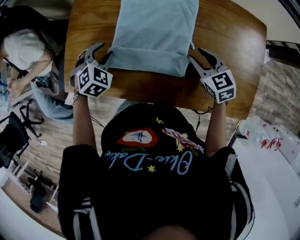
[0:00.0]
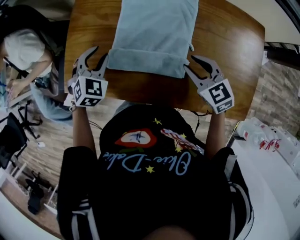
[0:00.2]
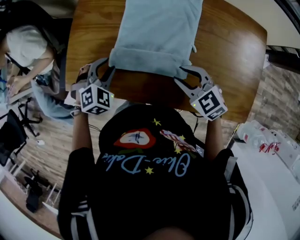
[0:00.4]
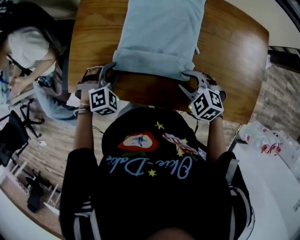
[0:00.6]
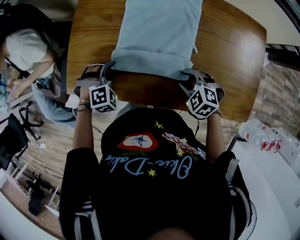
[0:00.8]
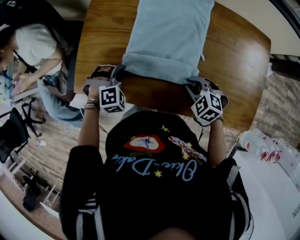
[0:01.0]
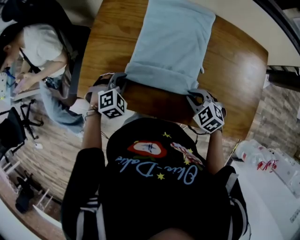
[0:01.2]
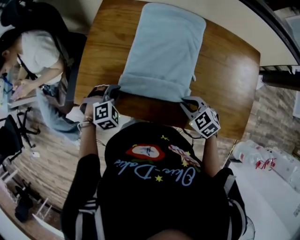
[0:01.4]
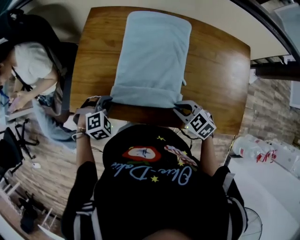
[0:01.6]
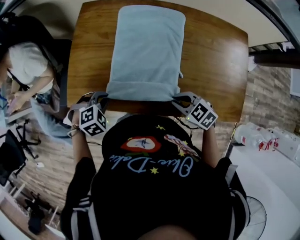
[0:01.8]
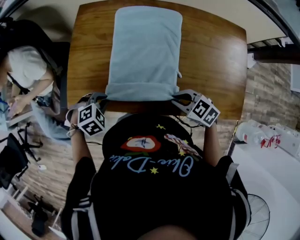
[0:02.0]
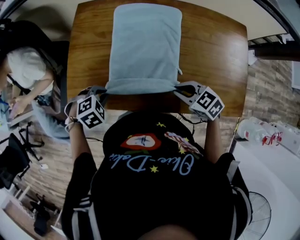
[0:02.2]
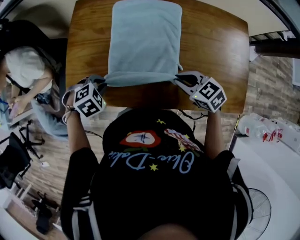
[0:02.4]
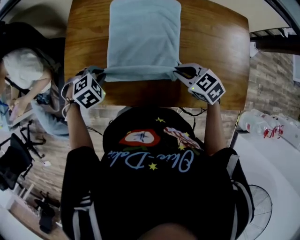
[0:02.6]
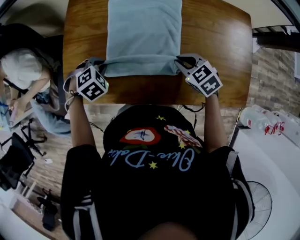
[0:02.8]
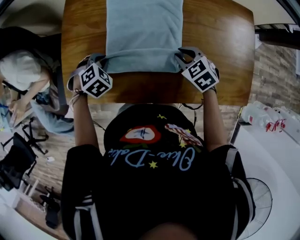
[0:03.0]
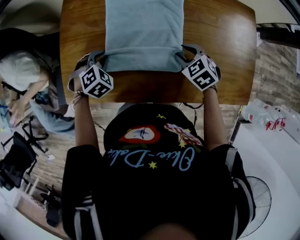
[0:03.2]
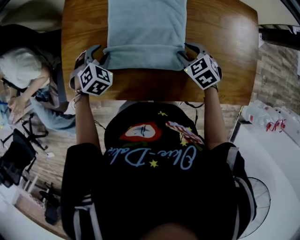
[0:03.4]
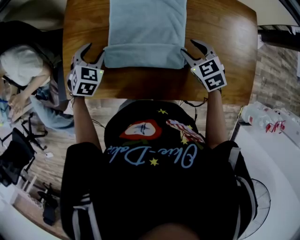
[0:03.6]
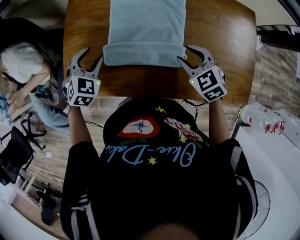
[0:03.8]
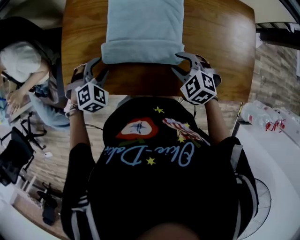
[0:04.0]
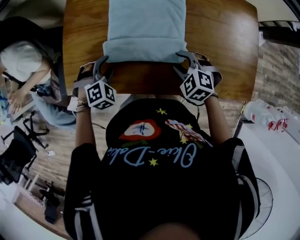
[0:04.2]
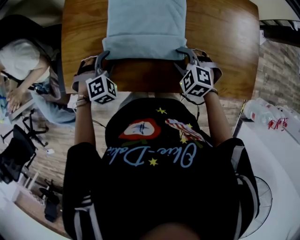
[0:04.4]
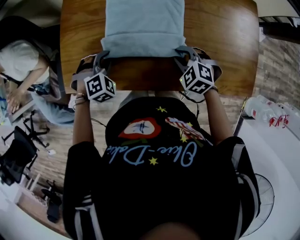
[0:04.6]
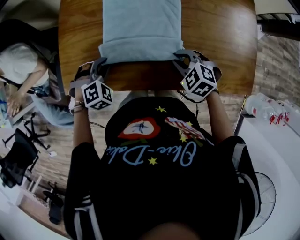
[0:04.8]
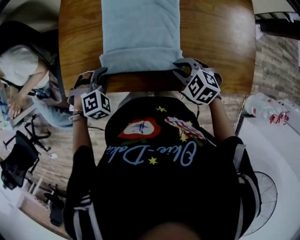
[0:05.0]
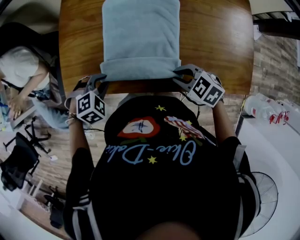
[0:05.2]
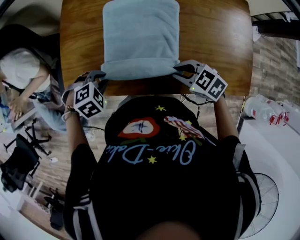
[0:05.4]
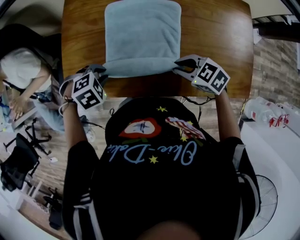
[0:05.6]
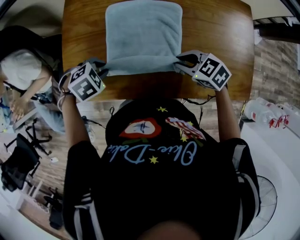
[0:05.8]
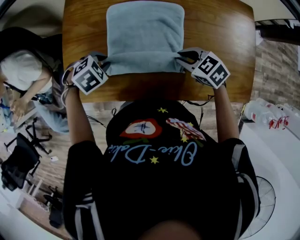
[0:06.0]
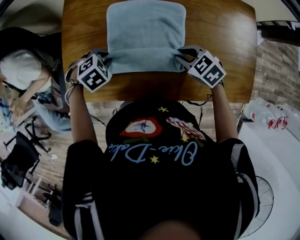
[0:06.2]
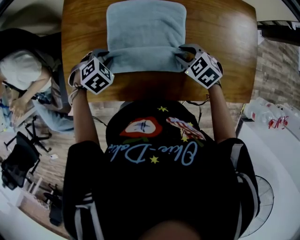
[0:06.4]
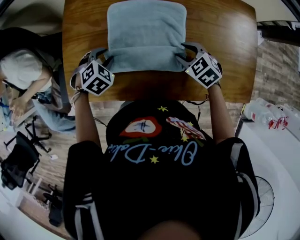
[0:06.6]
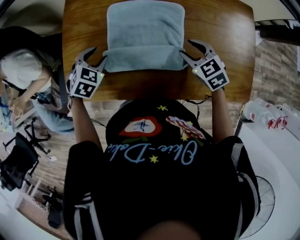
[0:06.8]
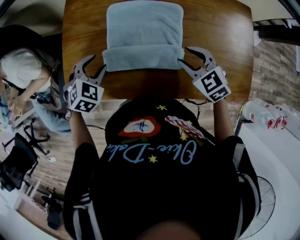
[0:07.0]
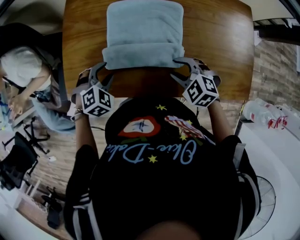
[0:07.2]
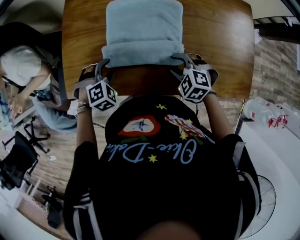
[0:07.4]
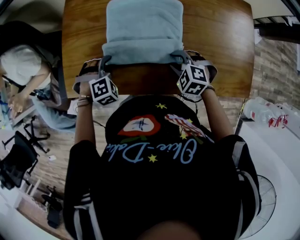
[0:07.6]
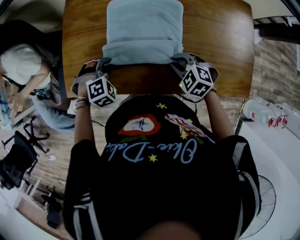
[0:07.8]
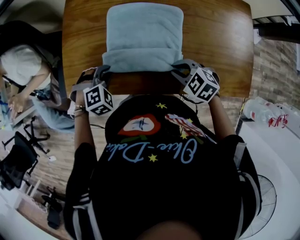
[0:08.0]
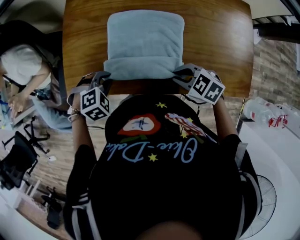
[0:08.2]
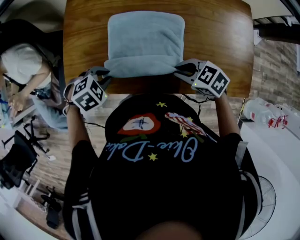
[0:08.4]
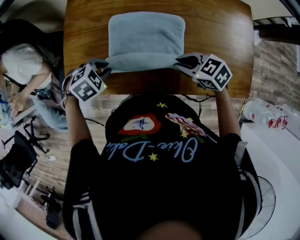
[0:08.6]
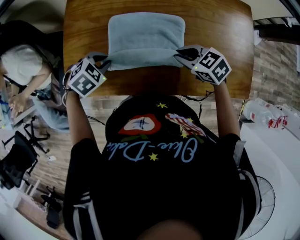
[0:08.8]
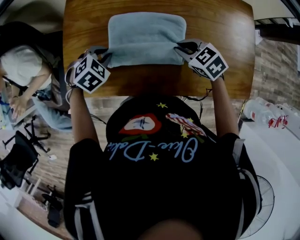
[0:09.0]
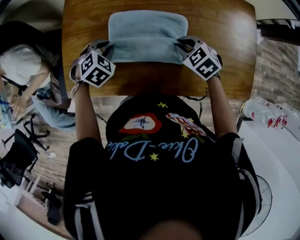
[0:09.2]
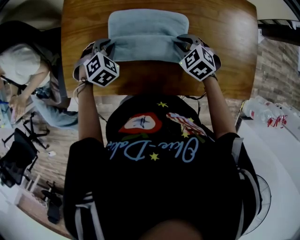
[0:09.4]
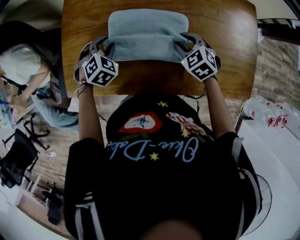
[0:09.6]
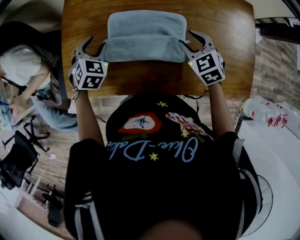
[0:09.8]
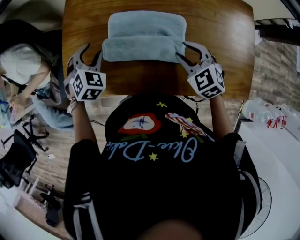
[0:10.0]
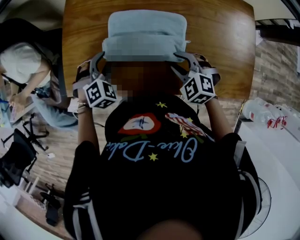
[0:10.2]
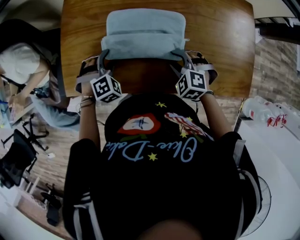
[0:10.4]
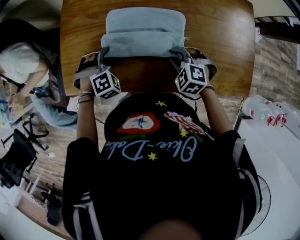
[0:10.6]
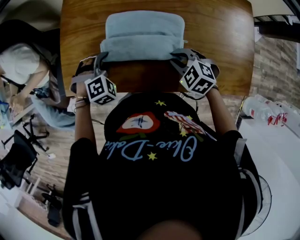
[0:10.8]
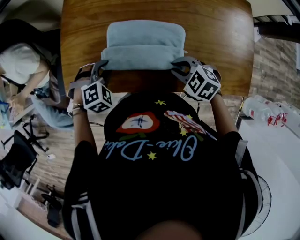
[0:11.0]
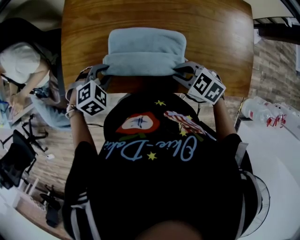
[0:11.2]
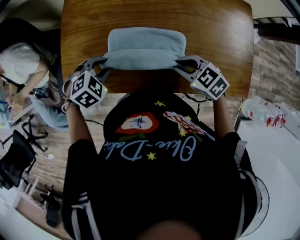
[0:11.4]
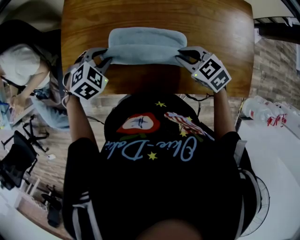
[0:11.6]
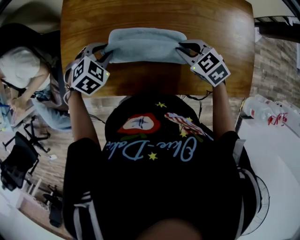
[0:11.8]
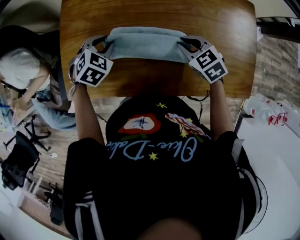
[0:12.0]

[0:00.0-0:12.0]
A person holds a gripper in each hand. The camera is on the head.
0:00.0 to 0:01.6: The two grippers go some 15 cm backward and to the left. The right gripper swivels about 20 degrees, and closes up. The left gripper swivels approximately 20 degrees, and closes.
0:01.6 to 0:03.0: The right gripper ends up about 10 cm from where it was; the left gripper moves some 10 cm.
0:03.0 to 0:04.4: Both grippers travel together backward, roughly 5 cm. The left gripper opens its fingers; the right gripper turns by some 30 degrees, and opens up.
0:04.4 to 0:06.0: The right gripper shifts by some 5 cm, rotates about 30 degrees, and closes, while the left gripper rotates approximately 30 degrees, and closes.
0:06.0 to 0:07.6: The right gripper moves about 5 cm, and rotates approximately 30 degrees, while the left gripper swivels about 30 degrees.
0:07.6 to 0:09.0: The right gripper moves some 10 cm, changes its angle by about 30 degrees, and closes up; the left gripper changes place by approximately 5 cm, and rotates roughly 30 degrees.
0:09.0 to 0:10.4: The left gripper swivels some 20 degrees, and opens up, while the right gripper is displaced backward by approximately 5 cm, swivels some 40 degrees, and opens up.
0:10.4 to 0:12.0: Both grippers travel together forward, some 5 cm. The right gripper turns by roughly 30 degrees, and closes its fingers. The left gripper turns by roughly 30 degrees, and closes.

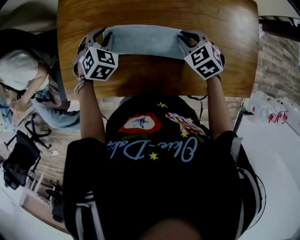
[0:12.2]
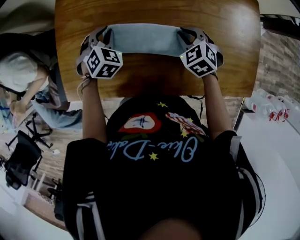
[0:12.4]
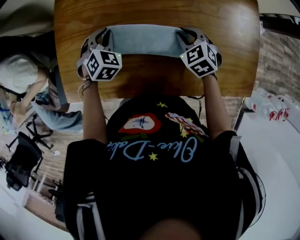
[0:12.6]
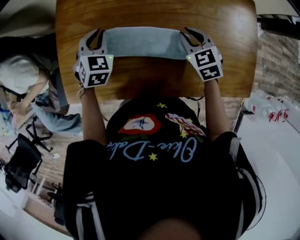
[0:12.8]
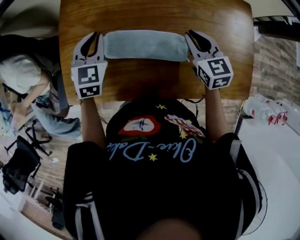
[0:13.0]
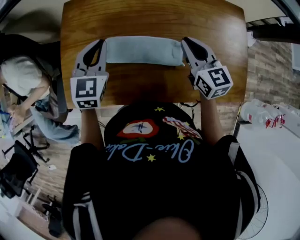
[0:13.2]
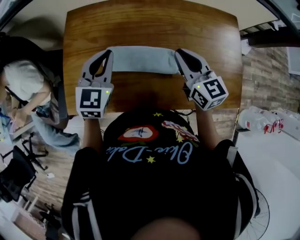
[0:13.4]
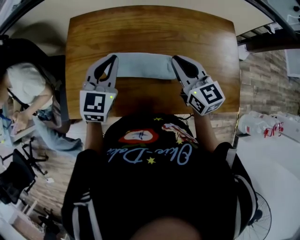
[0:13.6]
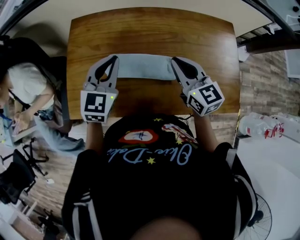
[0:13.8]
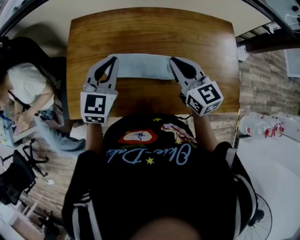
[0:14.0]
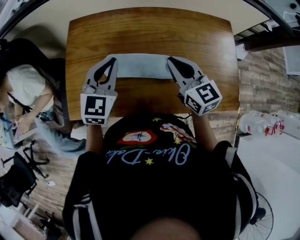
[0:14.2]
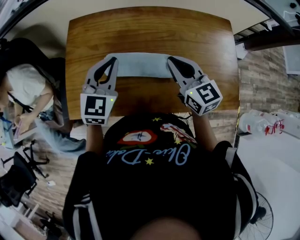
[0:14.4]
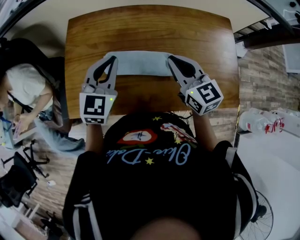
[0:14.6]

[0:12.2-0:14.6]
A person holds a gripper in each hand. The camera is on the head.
0:12.2 to 0:13.4: The grippers both shift upward by approximately 15 cm. The left gripper tilts its fingers about 30 degrees upward, and closes up. The right gripper angles its fingers upward, by approximately 40 degrees.
0:13.4 to 0:14.6: The grippers stay close to where they were, moving slightly.

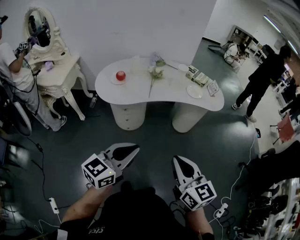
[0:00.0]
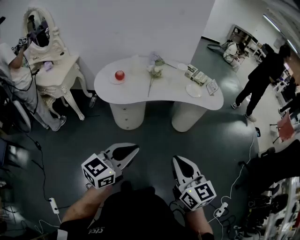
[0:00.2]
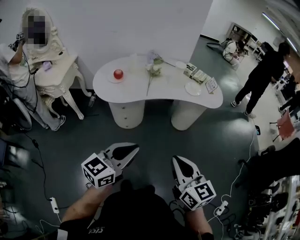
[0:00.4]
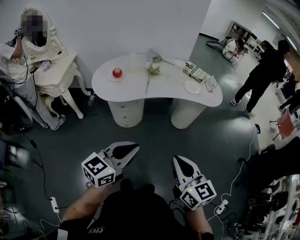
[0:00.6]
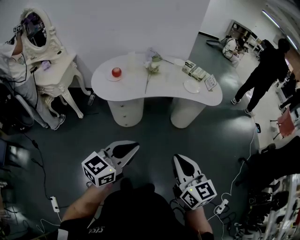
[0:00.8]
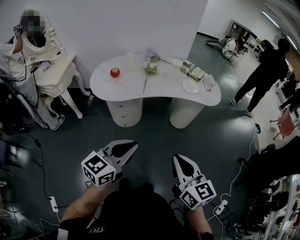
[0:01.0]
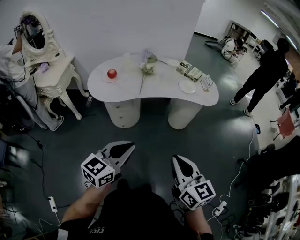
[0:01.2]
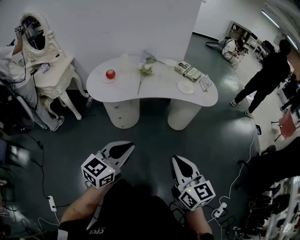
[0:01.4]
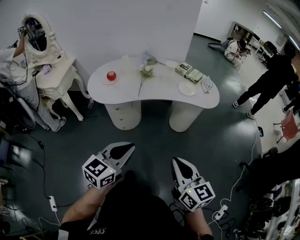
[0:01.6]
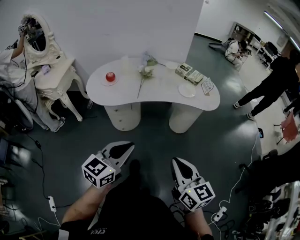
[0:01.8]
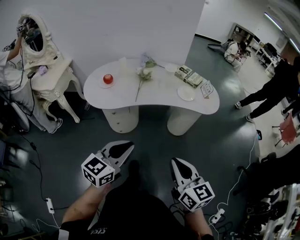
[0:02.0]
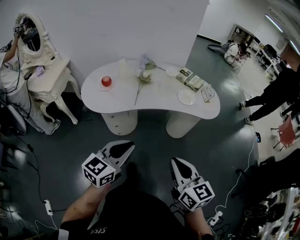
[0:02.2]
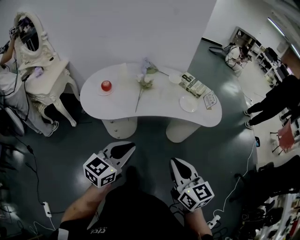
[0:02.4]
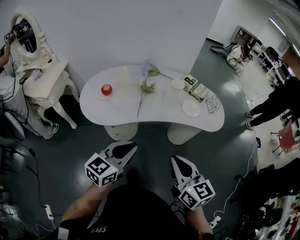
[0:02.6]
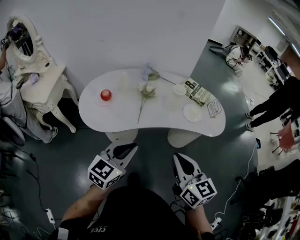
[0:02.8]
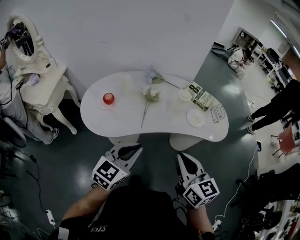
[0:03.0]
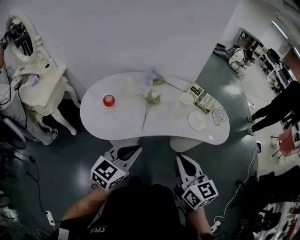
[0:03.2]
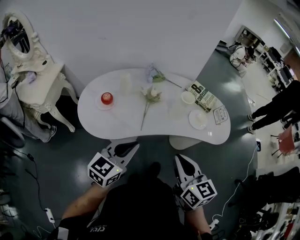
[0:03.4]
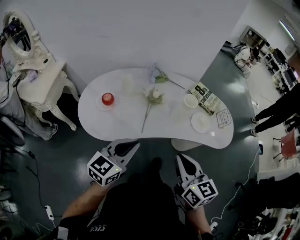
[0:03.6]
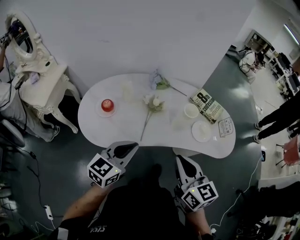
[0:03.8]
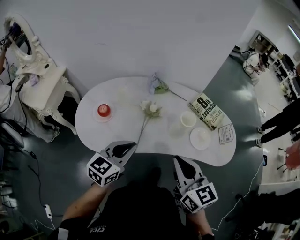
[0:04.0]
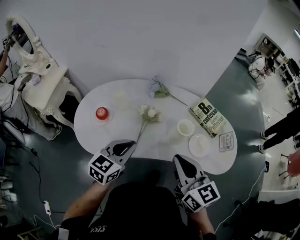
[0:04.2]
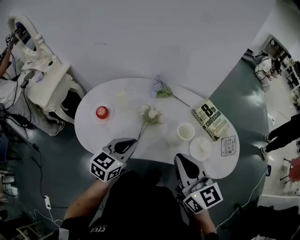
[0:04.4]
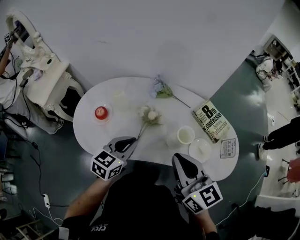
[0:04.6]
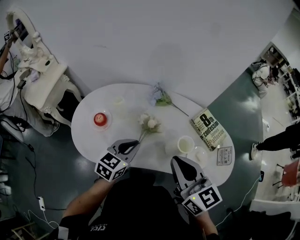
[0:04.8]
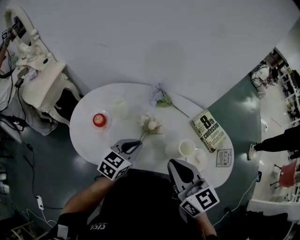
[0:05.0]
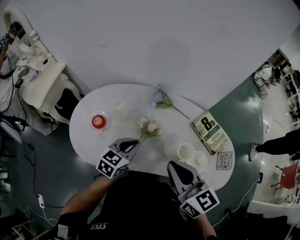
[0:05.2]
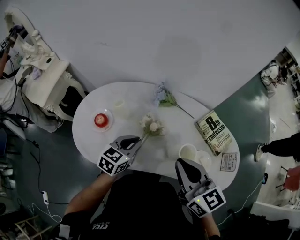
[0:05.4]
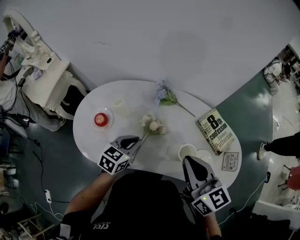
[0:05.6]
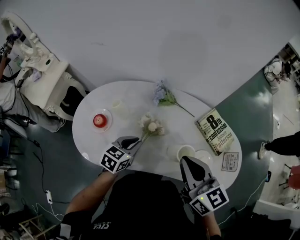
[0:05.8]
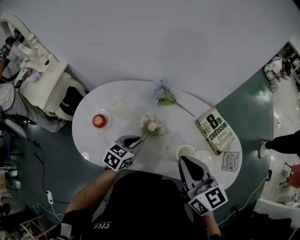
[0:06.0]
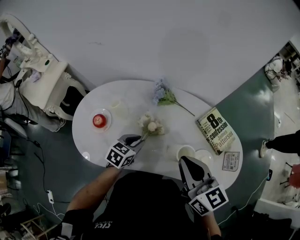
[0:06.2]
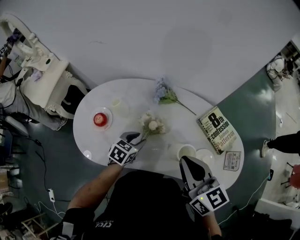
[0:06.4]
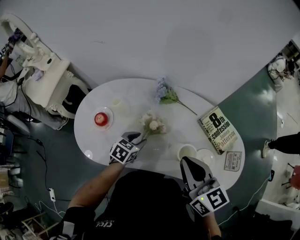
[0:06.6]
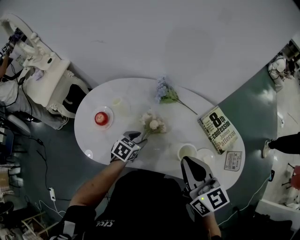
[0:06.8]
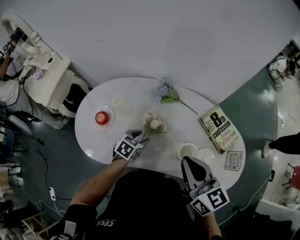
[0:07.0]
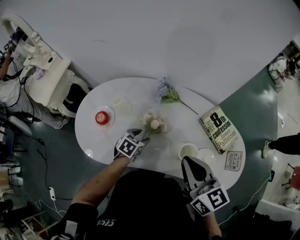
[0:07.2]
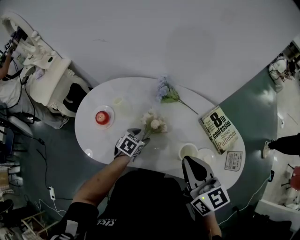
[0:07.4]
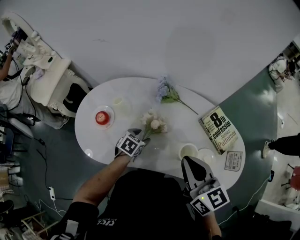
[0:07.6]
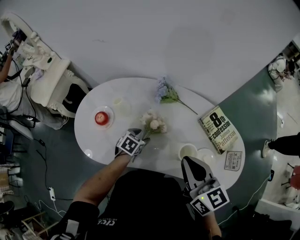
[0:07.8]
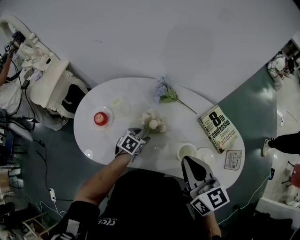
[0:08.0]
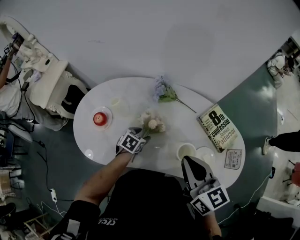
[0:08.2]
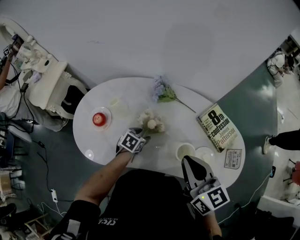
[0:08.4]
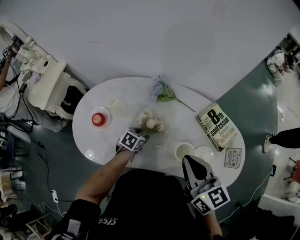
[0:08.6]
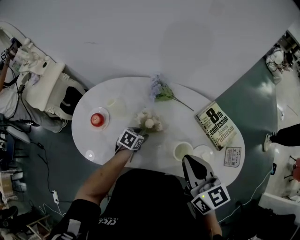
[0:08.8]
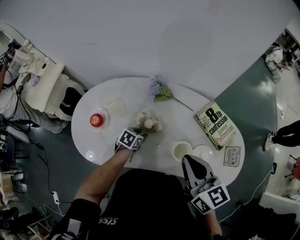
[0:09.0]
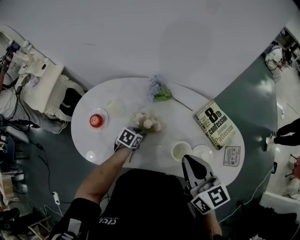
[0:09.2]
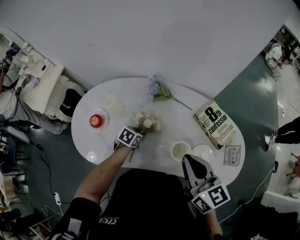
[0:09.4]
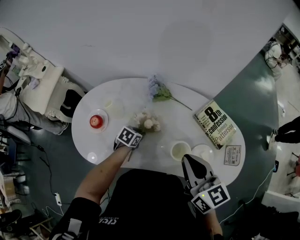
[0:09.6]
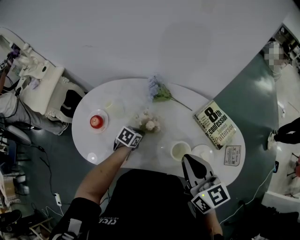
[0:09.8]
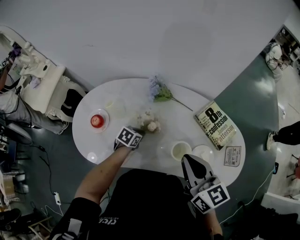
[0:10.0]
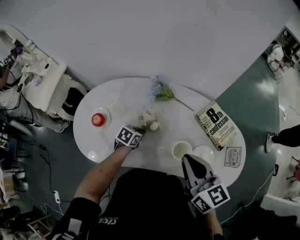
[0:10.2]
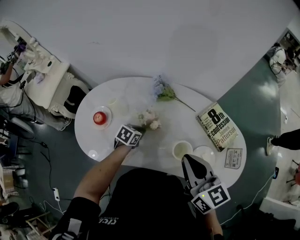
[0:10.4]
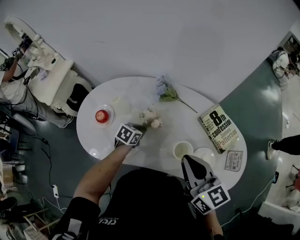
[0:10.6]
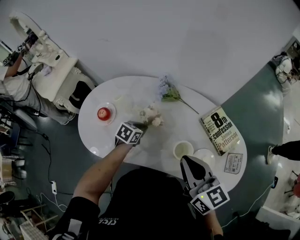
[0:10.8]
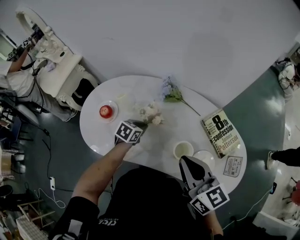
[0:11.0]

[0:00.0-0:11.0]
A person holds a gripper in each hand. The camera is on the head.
0:00.0 to 0:01.6: The two grippers go approximately 10 cm to the right.
0:01.6 to 0:03.2: The two grippers go approximately 30 cm forward.
0:03.2 to 0:04.8: The two grippers go about 25 cm forward.
0:04.8 to 0:06.2: The left gripper goes approximately 15 cm downward and forward, while the right gripper moves forward, about 5 cm.
0:06.2 to 0:07.8: The left gripper heads downward, covering about 10 cm, and opens its fingers.
0:07.8 to 0:09.4: The left gripper closes its fingers.
0:09.4 to 0:11.0: The left gripper heads upward, covering about 5 cm, and closes up.
